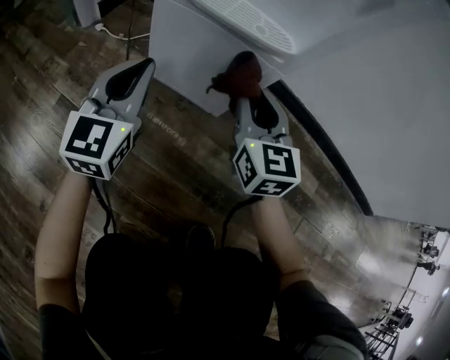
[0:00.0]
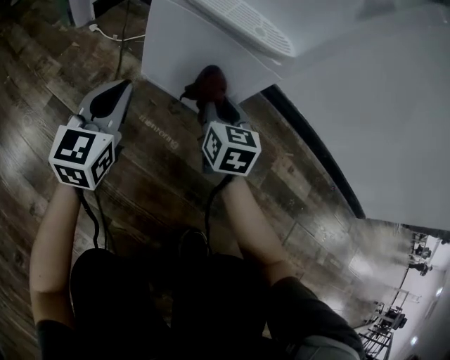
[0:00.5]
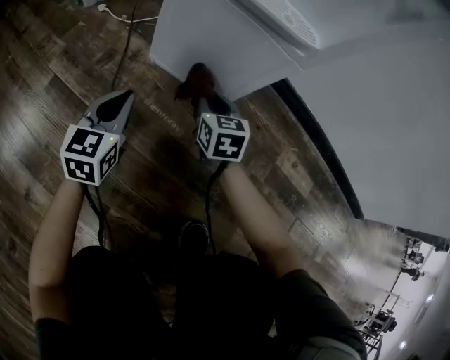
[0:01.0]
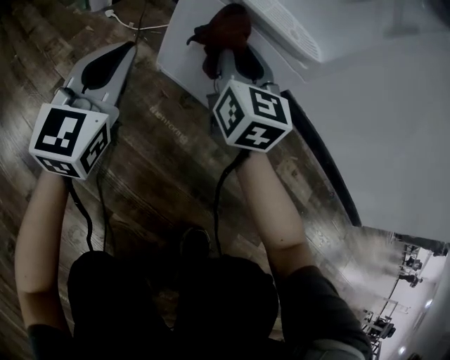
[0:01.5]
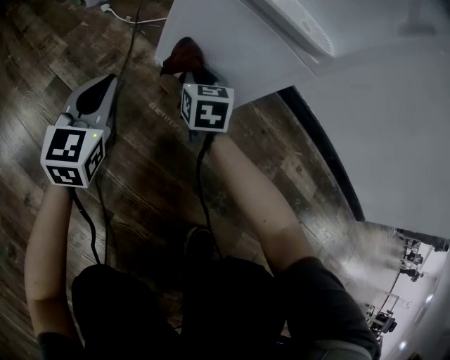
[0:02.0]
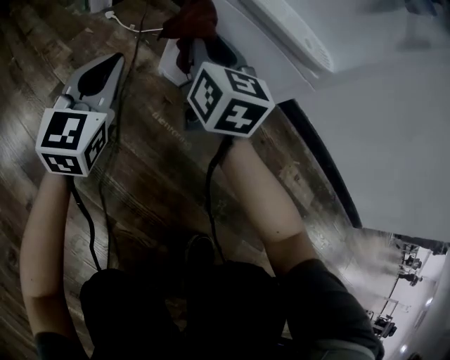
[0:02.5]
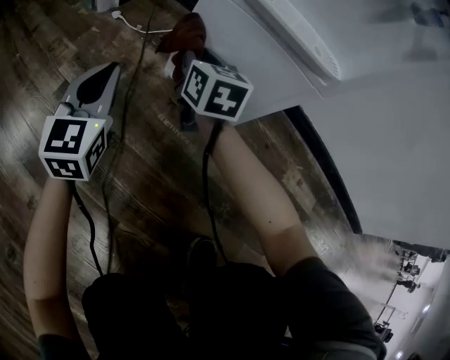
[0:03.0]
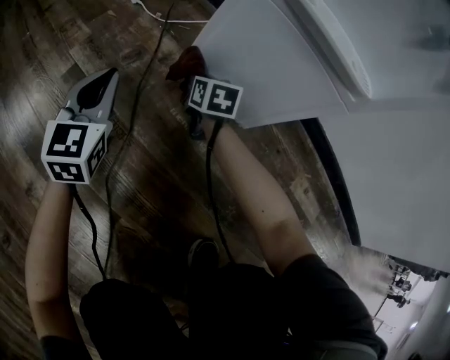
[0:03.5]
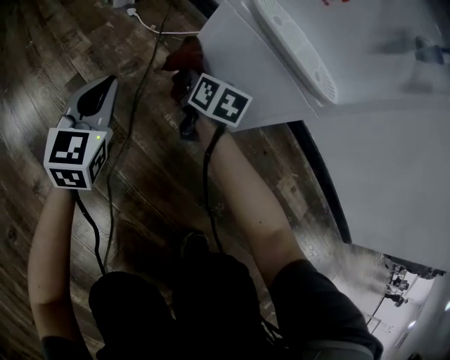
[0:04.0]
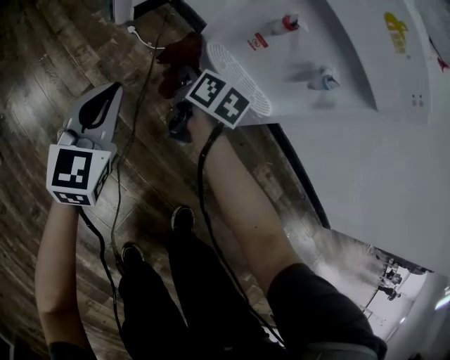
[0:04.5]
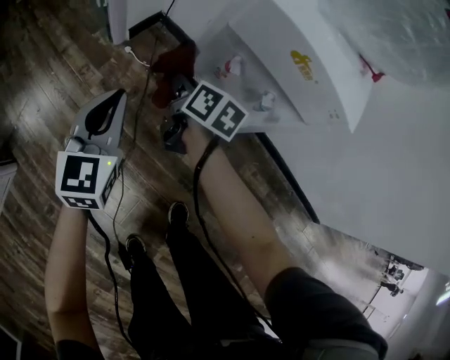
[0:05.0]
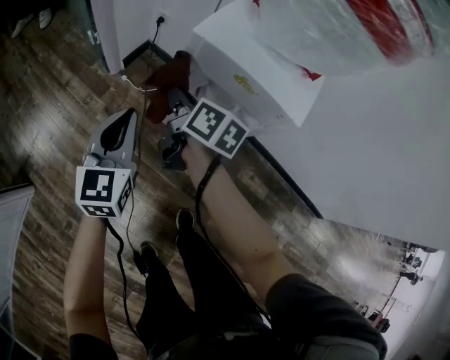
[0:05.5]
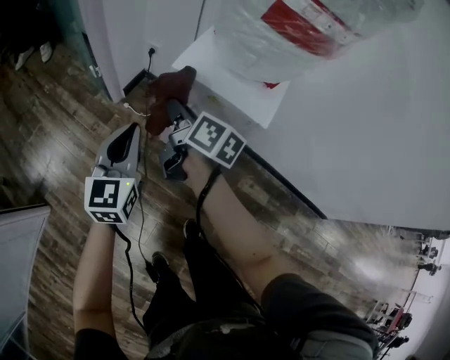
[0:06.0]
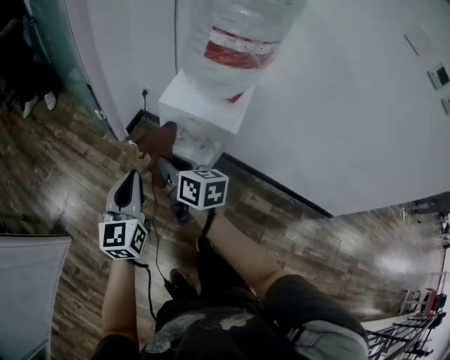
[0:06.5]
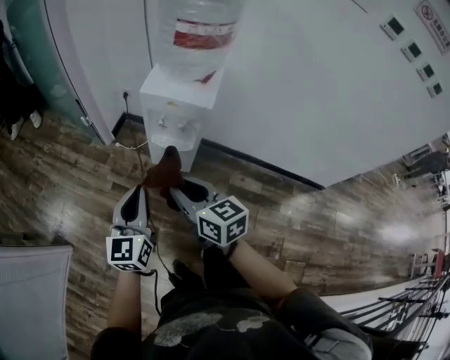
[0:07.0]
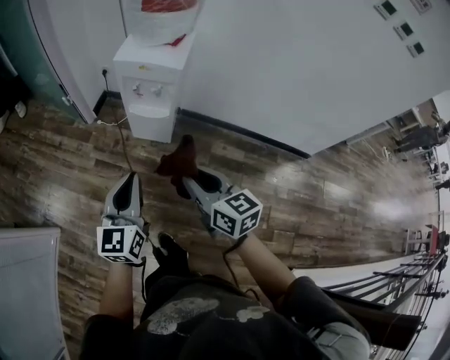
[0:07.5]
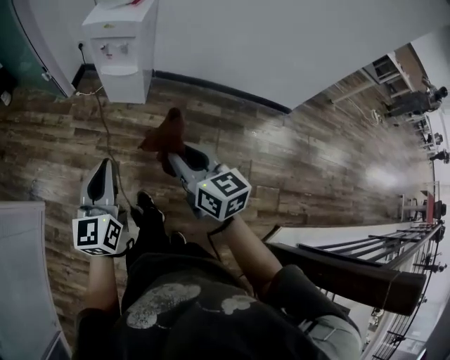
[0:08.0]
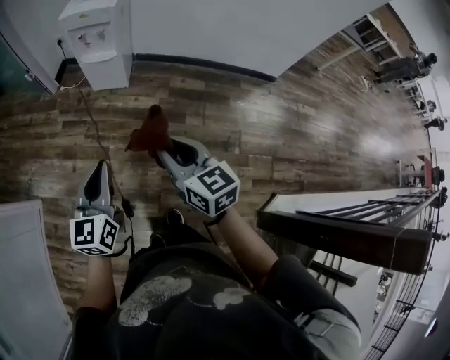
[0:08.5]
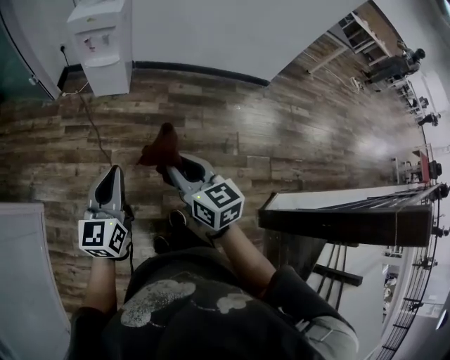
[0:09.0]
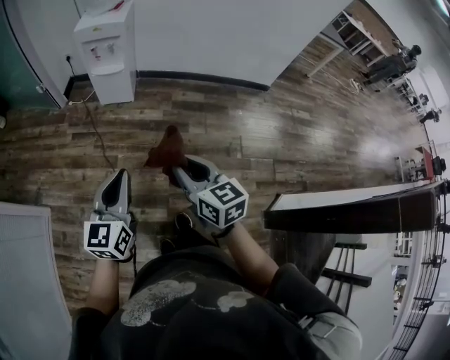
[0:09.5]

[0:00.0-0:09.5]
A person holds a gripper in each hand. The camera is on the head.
0:00.0 to 0:02.0: The right gripper goes up and down, approximately 20 cm each way, reversing 2 times; the left gripper swings up and down, some 15 cm each way, with 2 reversals.
0:02.0 to 0:04.0: The left gripper goes up and down, some 10 cm each way, reversing 2 times; the right gripper swings up and down, roughly 25 cm each way, with 2 reversals, and rotates about 30 degrees.
0:04.0 to 0:05.5: The two grippers go roughly 50 cm upward. The right gripper turns by about 30 degrees.
0:05.5 to 0:07.5: Both grippers travel together backward and upward, about 50 cm. The right gripper swivels approximately 30 degrees.
0:07.5 to 0:09.5: The two grippers go about 35 cm backward.

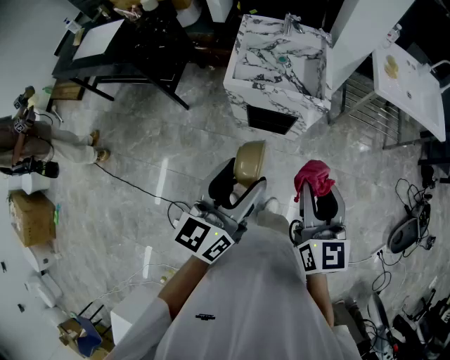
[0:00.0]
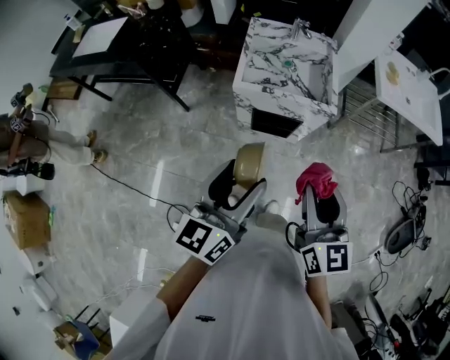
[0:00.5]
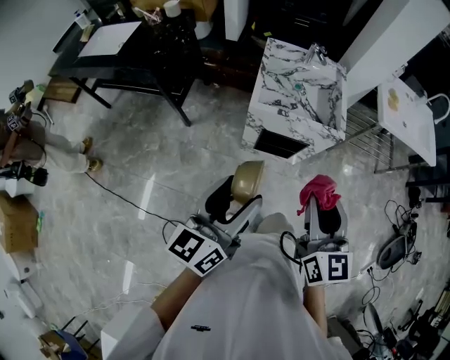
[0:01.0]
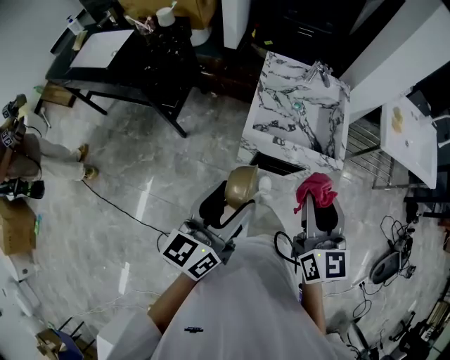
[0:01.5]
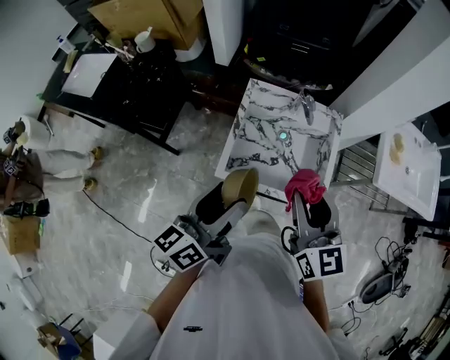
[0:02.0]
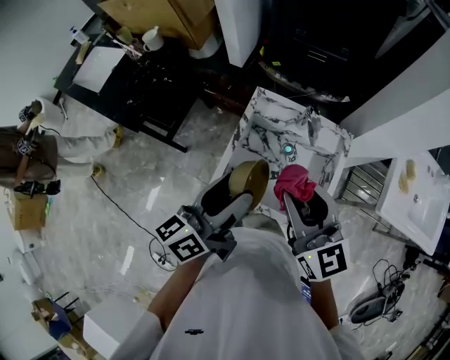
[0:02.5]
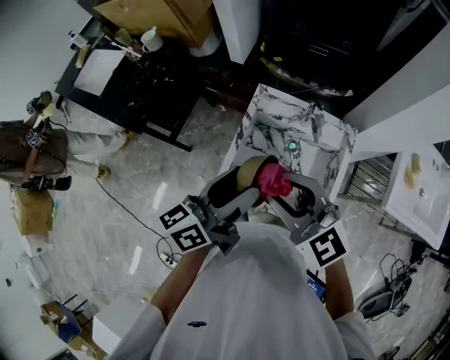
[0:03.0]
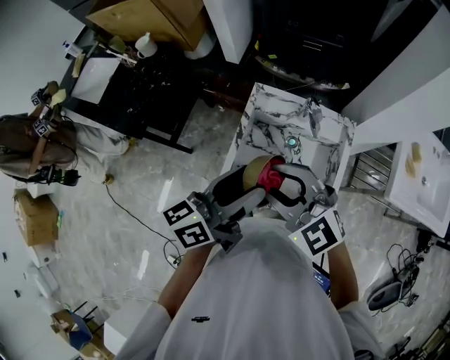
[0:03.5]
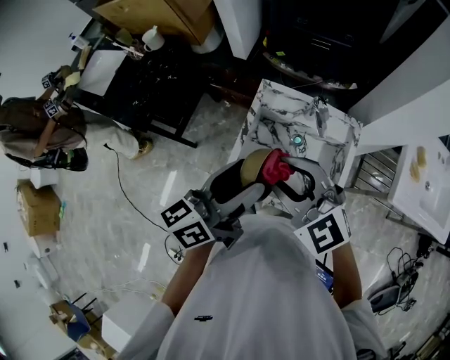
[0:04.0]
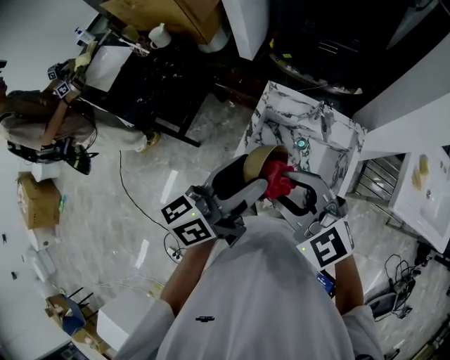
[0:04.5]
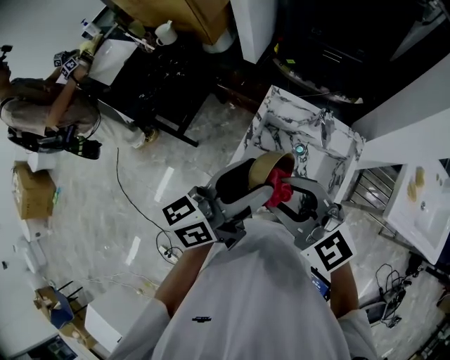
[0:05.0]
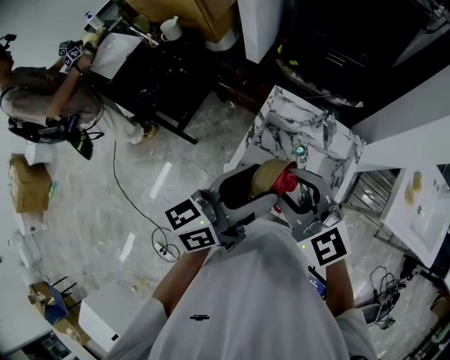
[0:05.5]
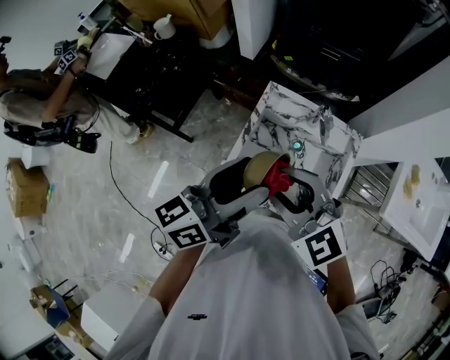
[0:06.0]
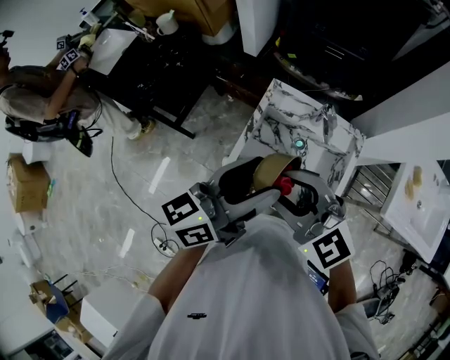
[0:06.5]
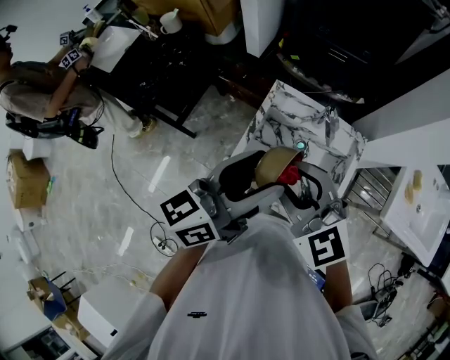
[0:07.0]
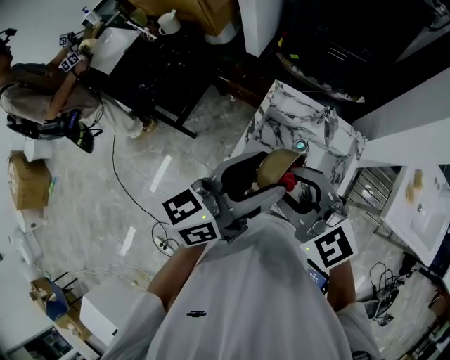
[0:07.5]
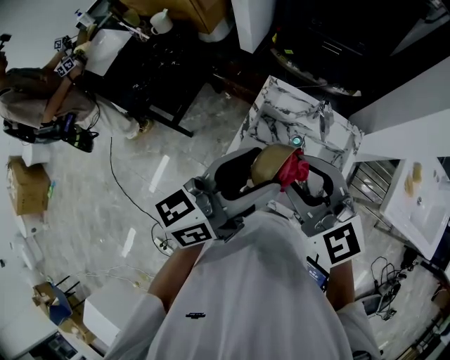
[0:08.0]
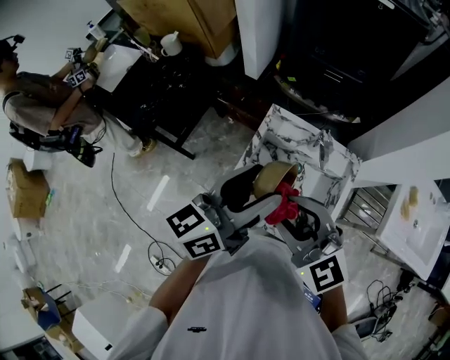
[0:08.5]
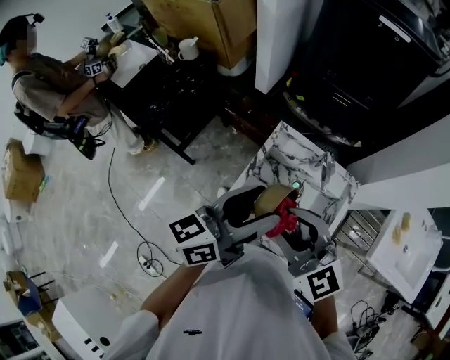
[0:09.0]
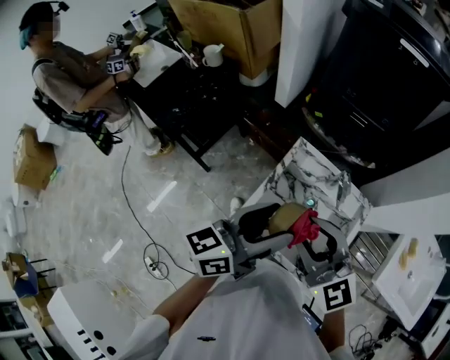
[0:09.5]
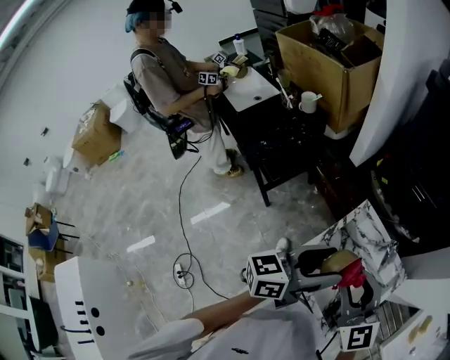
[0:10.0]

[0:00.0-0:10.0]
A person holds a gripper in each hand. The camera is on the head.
0:00.0 to 0:02.0: Both grippers move forward, about 35 cm.
0:02.0 to 0:04.0: The right gripper moves forward and to the left, about 10 cm, and turns by roughly 50 degrees; the left gripper heads forward and to the right, covering some 10 cm.
0:04.0 to 0:06.0: The grippers stay close to where they were, moving slightly.
0:06.0 to 0:08.0: The right gripper shifts by about 5 cm.
0:08.0 to 0:10.0: The grippers make only small movements.

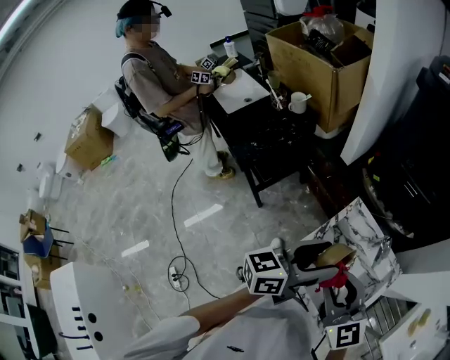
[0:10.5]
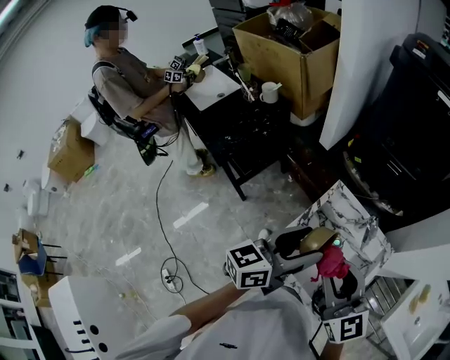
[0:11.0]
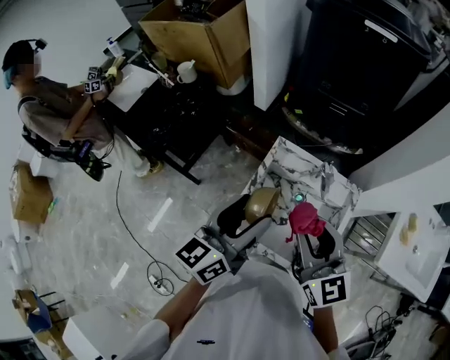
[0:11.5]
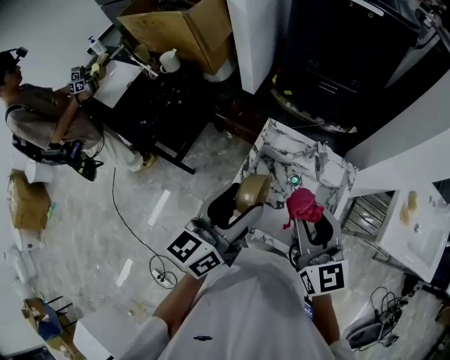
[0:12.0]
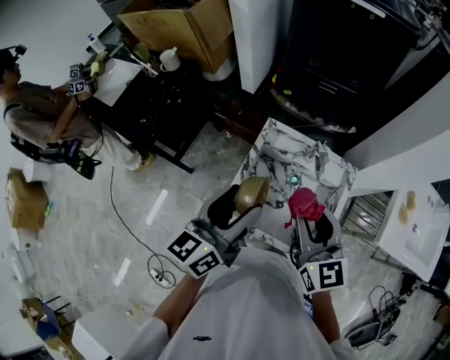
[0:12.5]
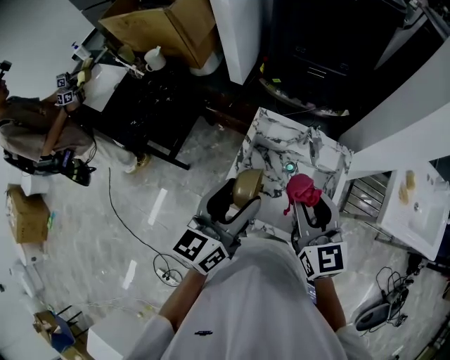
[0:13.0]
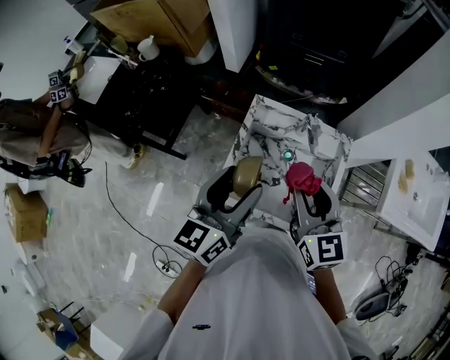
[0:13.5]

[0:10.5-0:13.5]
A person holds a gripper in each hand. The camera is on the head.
0:10.5 to 0:12.0: The right gripper moves to the right, roughly 10 cm, and rotates some 30 degrees.
0:12.0 to 0:13.5: The grippers move only a little.

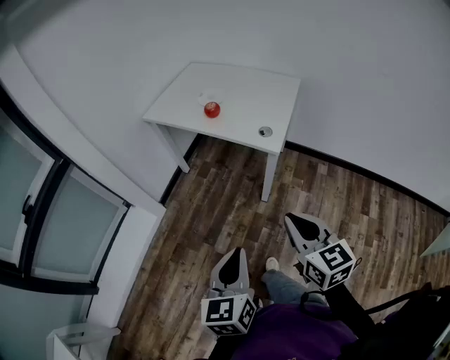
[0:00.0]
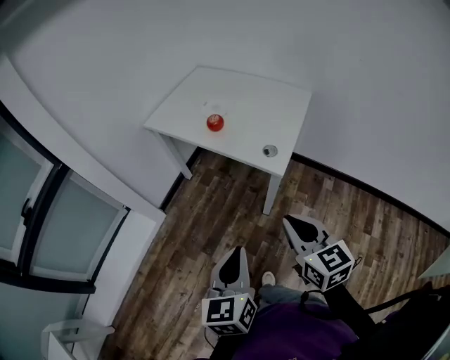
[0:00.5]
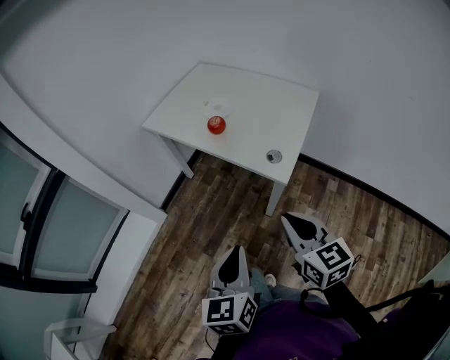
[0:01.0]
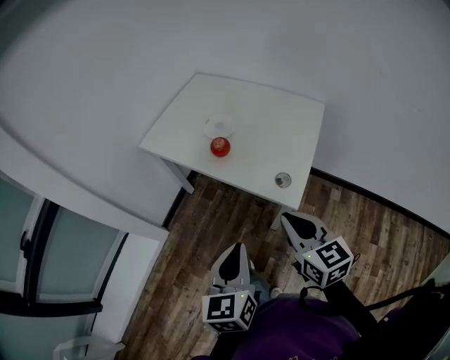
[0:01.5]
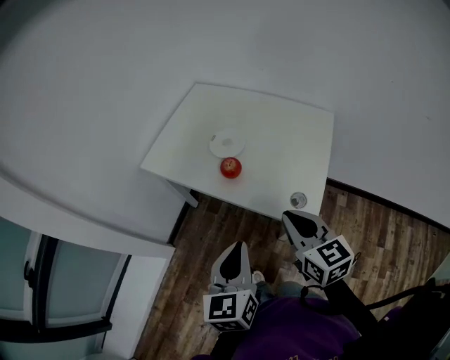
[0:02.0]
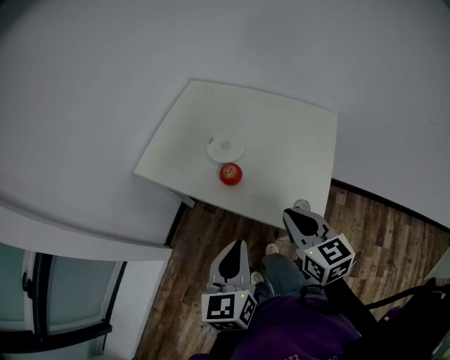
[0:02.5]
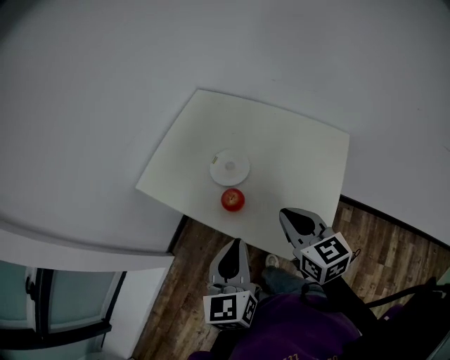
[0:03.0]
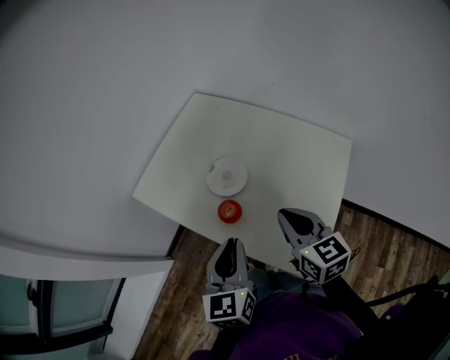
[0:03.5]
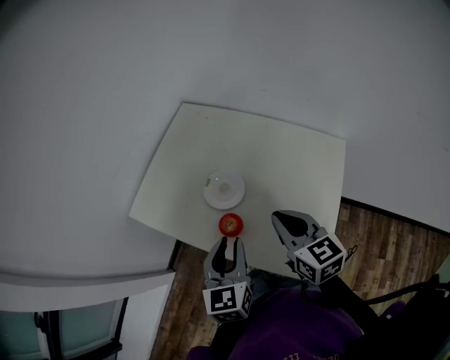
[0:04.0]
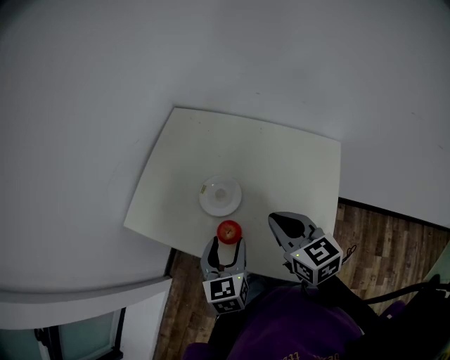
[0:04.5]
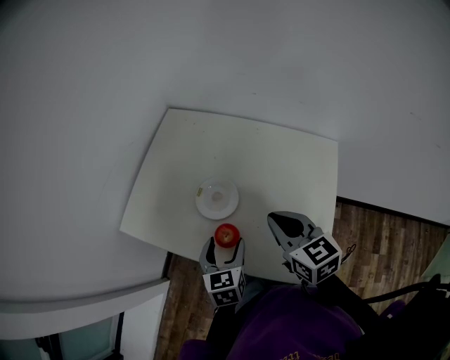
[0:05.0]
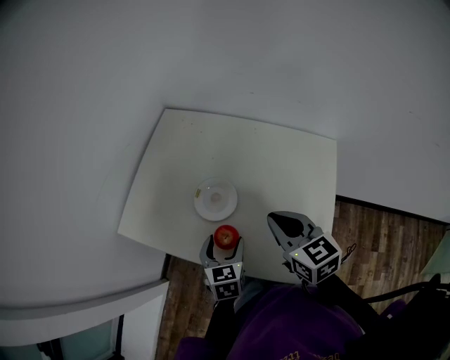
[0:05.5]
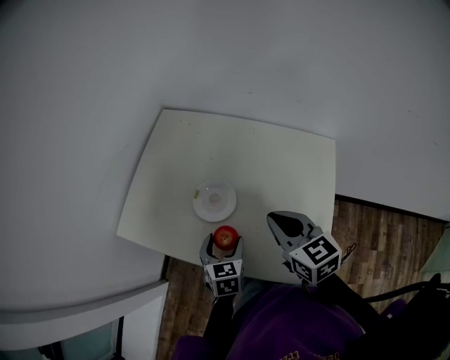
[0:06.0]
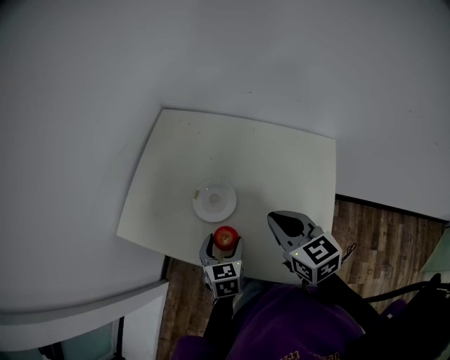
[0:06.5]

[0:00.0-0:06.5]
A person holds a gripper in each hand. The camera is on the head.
0:00.0 to 0:02.0: Both grippers travel together forward, about 35 cm.
0:02.0 to 0:04.5: The grippers both shift forward by roughly 25 cm. The left gripper opens.
0:04.5 to 0:06.5: The left gripper is displaced downward by some 10 cm.
